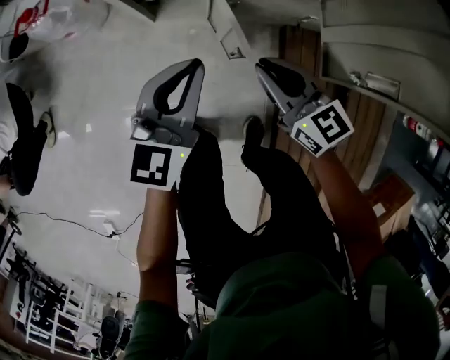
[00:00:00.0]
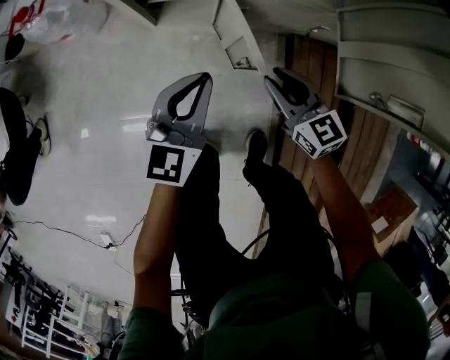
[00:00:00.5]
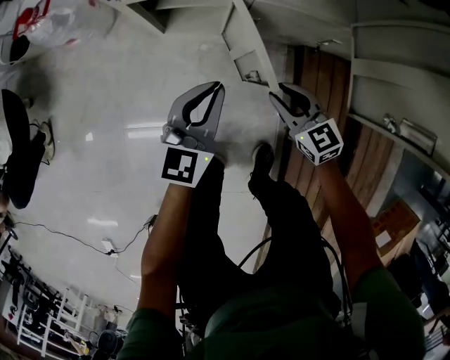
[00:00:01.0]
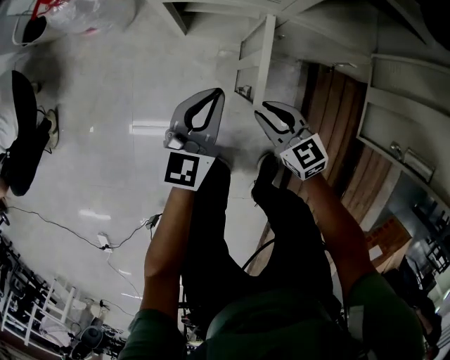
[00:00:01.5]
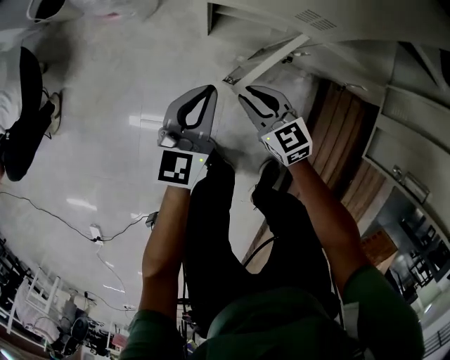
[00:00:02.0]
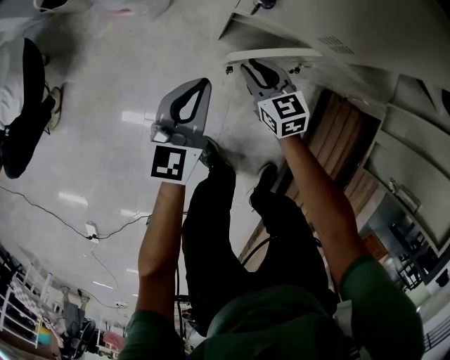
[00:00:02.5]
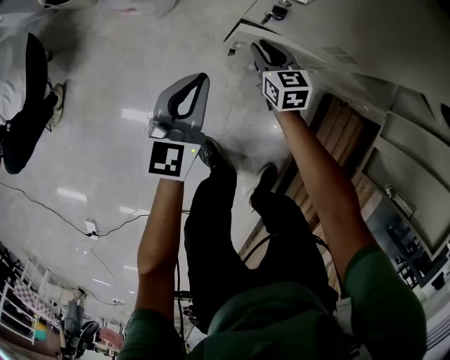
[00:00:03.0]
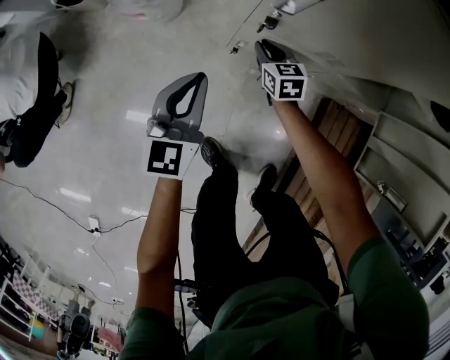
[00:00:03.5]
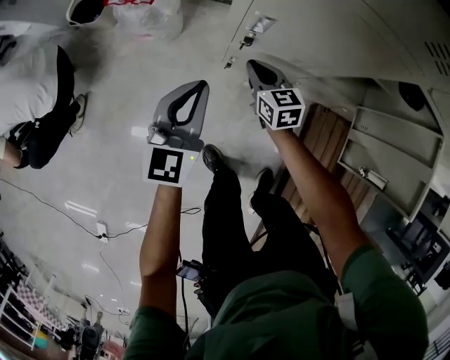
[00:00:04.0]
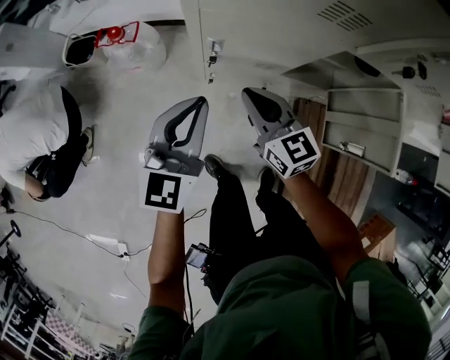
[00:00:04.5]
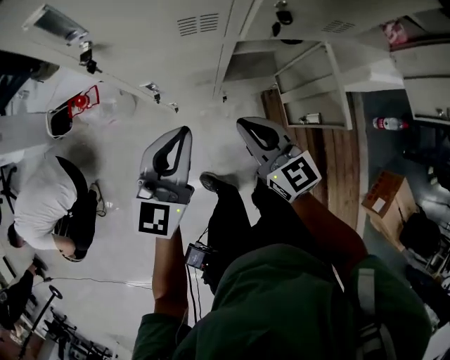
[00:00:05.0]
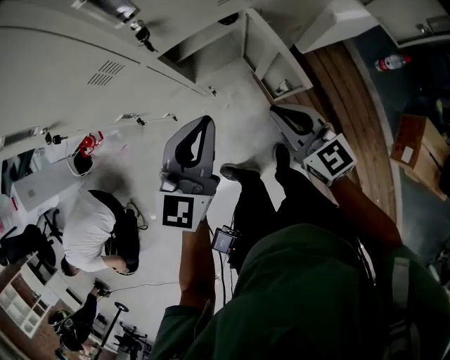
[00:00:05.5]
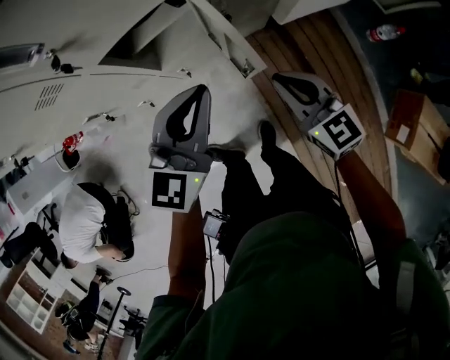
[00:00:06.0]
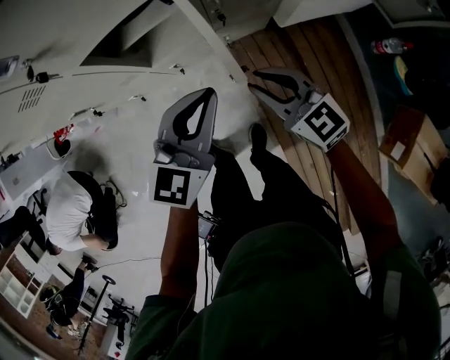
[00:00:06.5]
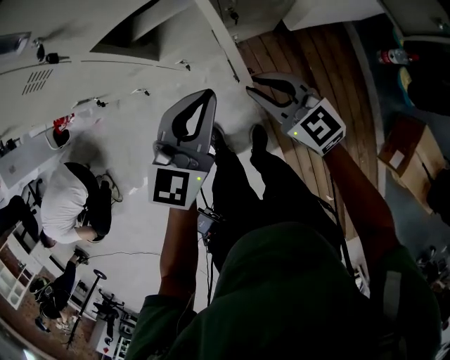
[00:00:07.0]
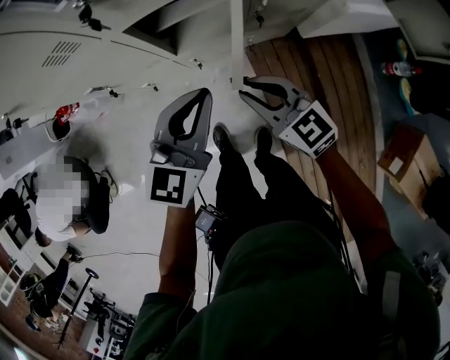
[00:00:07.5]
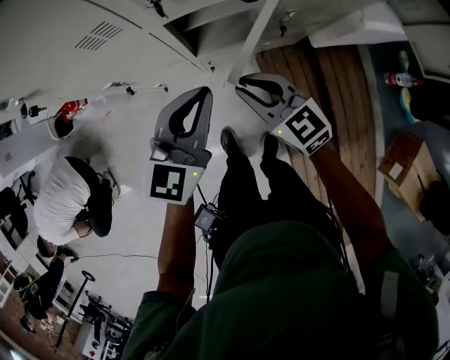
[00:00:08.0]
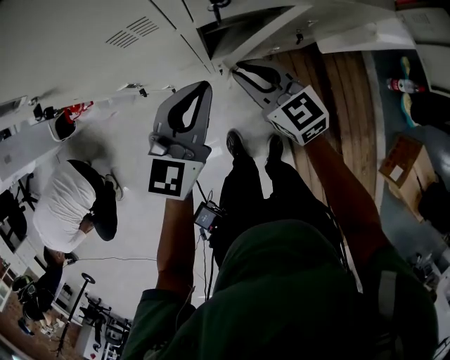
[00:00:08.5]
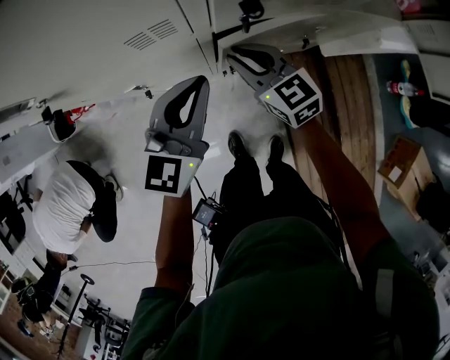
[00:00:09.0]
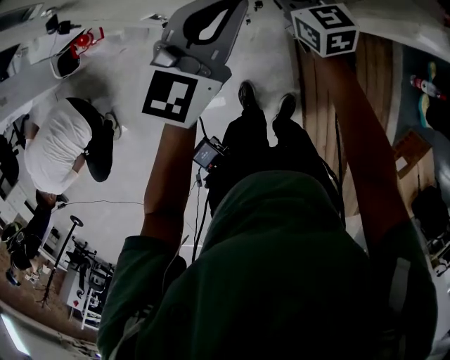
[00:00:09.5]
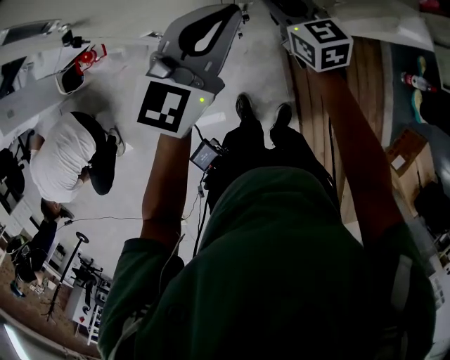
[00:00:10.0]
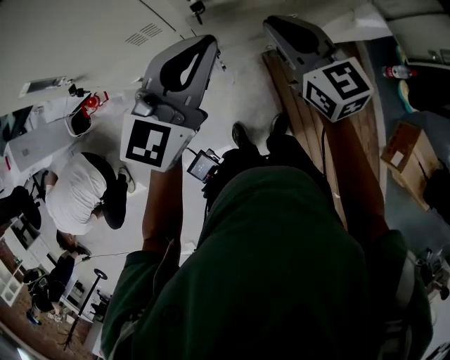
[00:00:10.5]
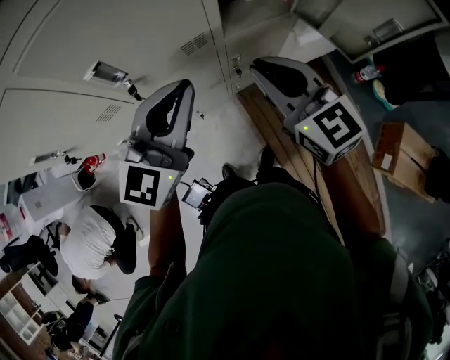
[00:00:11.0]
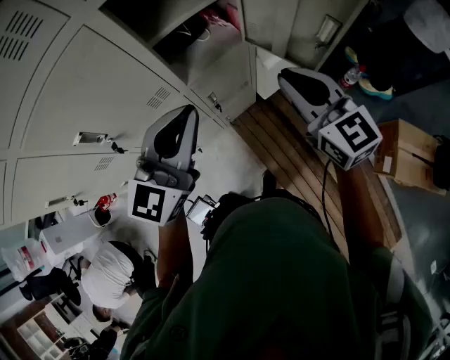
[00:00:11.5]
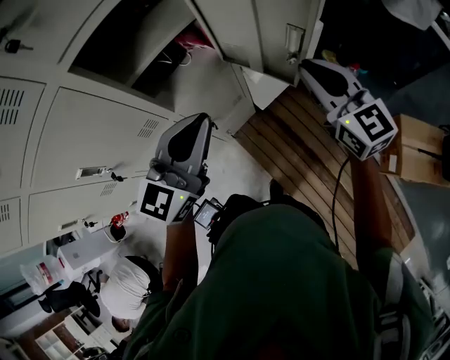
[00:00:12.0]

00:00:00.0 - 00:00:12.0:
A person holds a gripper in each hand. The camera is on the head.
00:00:00.0 - 00:00:02.0: Both grippers travel together to the left, downward and forward, about 25 cm.
00:00:02.0 - 00:00:04.0: The right gripper moves forward and upward, some 20 cm; the left gripper heads upward, covering about 20 cm.
00:00:04.0 - 00:00:06.0: The pair of grippers is taken about 50 cm. The right gripper swivels some 30 degrees; the left gripper swivels roughly 40 degrees.
00:00:06.0 - 00:00:08.0: The two grippers go roughly 15 cm to the left.
00:00:08.0 - 00:00:10.0: The right gripper shifts some 15 cm forward. The left gripper heads upward, forward and to the left, covering some 15 cm.
00:00:10.0 - 00:00:12.0: The right gripper shifts by roughly 60 cm, and swivels roughly 30 degrees, while the left gripper changes place by approximately 40 cm, and swivels approximately 20 degrees.

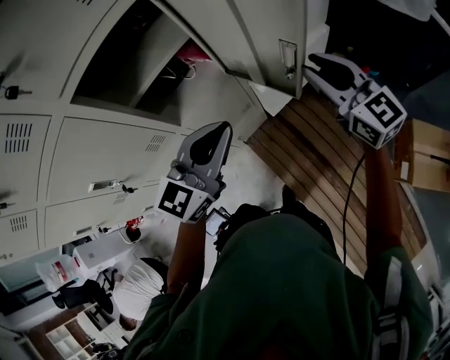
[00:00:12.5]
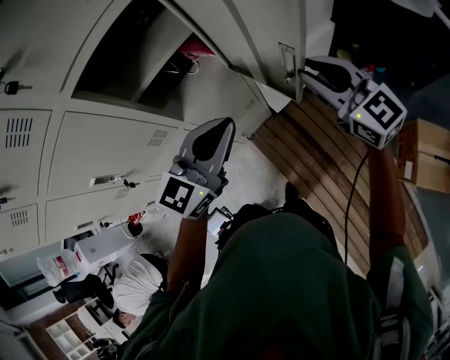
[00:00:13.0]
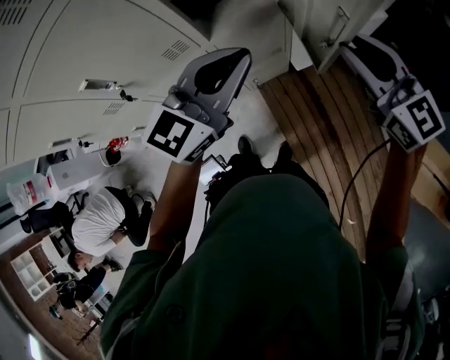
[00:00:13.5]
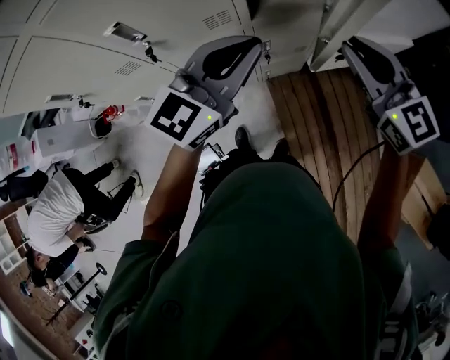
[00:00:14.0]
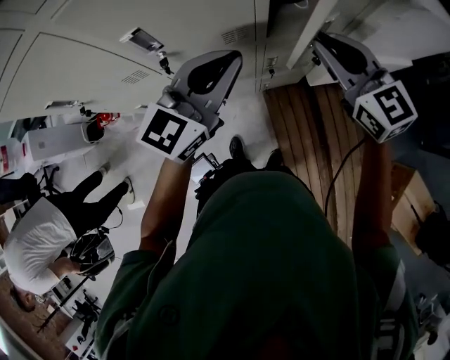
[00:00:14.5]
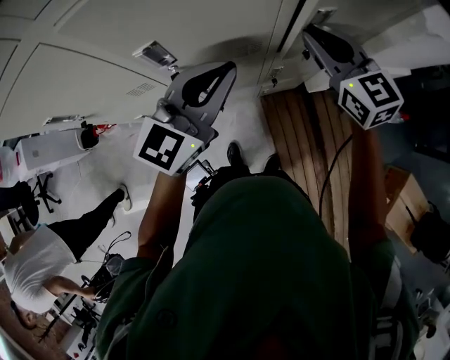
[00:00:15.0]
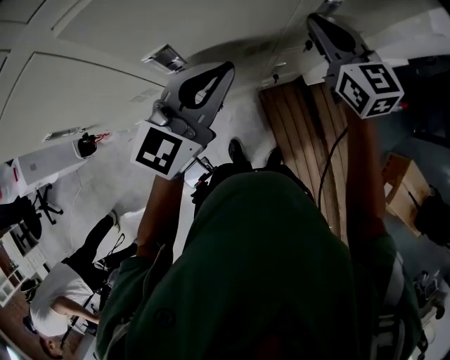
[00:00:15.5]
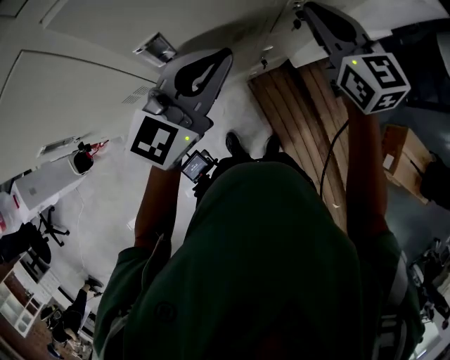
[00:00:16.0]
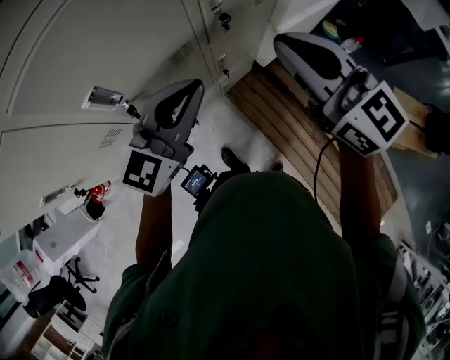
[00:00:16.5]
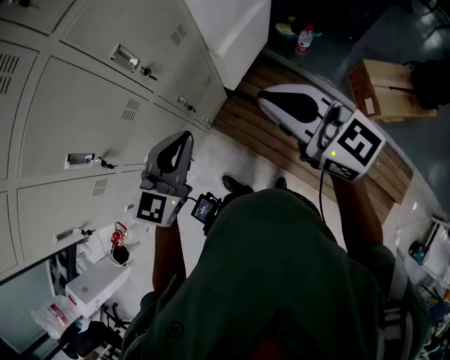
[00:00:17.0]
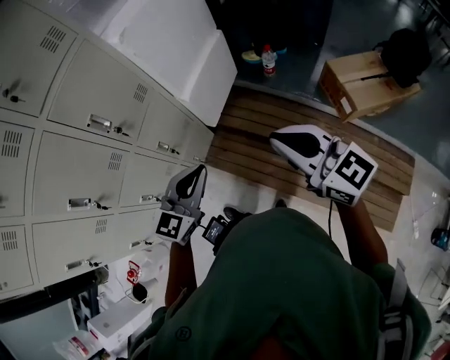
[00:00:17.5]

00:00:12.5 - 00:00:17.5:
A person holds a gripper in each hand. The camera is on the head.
00:00:12.5 - 00:00:15.0: The two grippers go roughly 35 cm to the left. The right gripper turns by about 20 degrees. The left gripper turns by about 20 degrees.
00:00:15.0 - 00:00:17.5: The left gripper ends up roughly 35 cm from where it was, and rotates some 40 degrees; the right gripper ends up about 50 cm from where it was, and changes its angle by about 30 degrees.

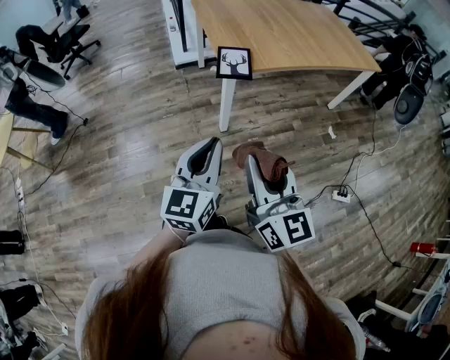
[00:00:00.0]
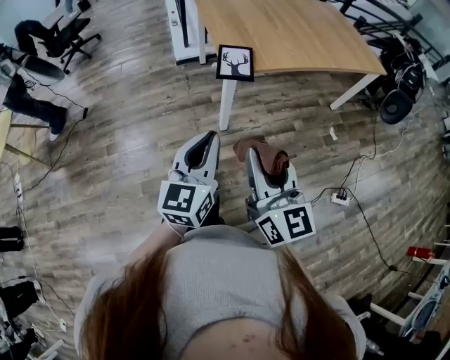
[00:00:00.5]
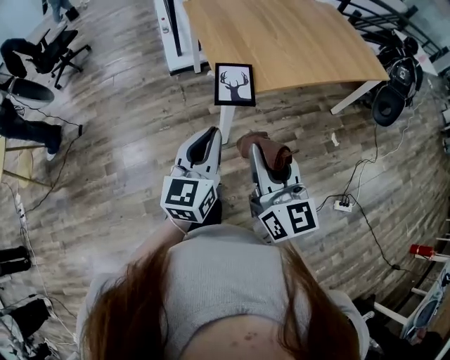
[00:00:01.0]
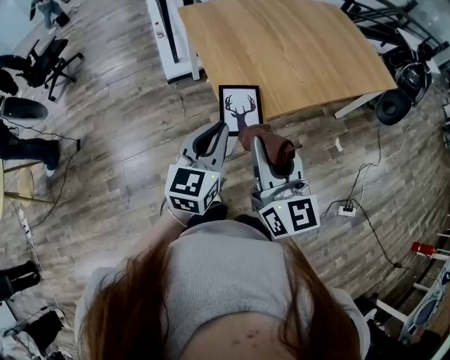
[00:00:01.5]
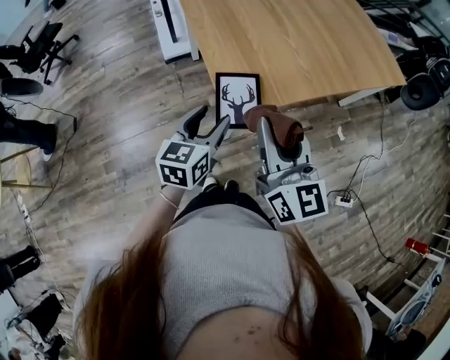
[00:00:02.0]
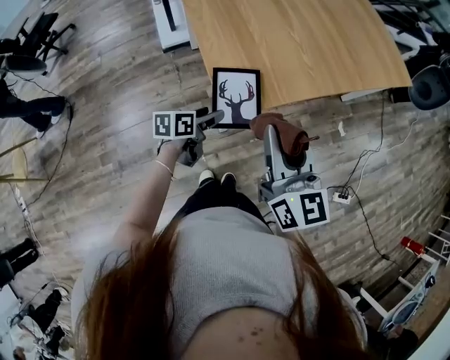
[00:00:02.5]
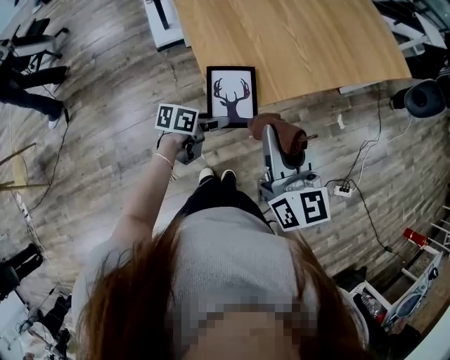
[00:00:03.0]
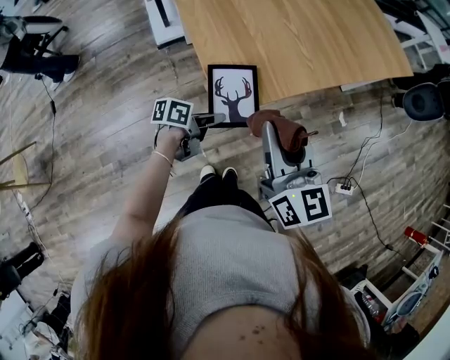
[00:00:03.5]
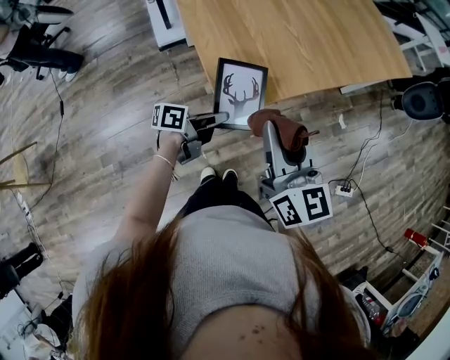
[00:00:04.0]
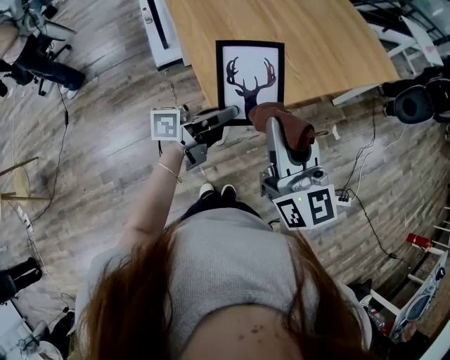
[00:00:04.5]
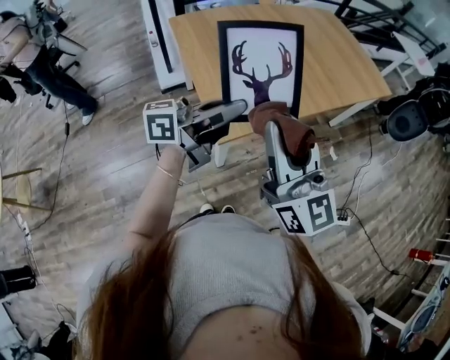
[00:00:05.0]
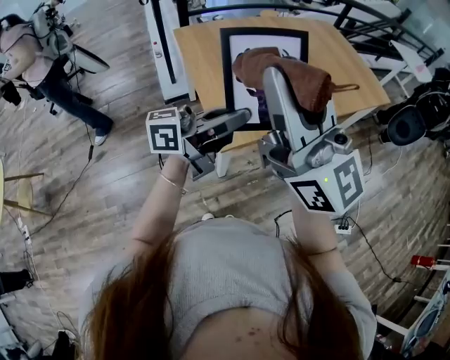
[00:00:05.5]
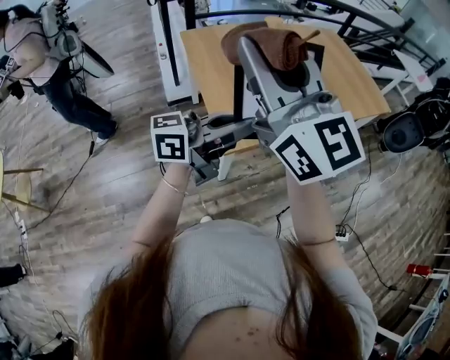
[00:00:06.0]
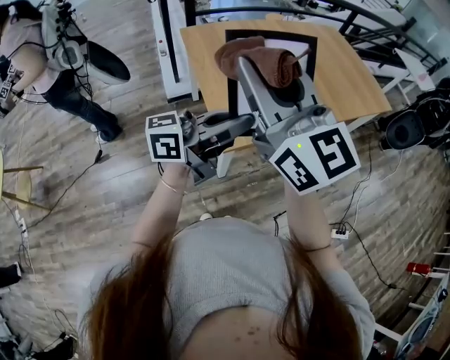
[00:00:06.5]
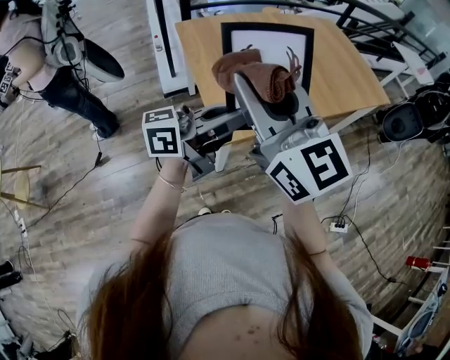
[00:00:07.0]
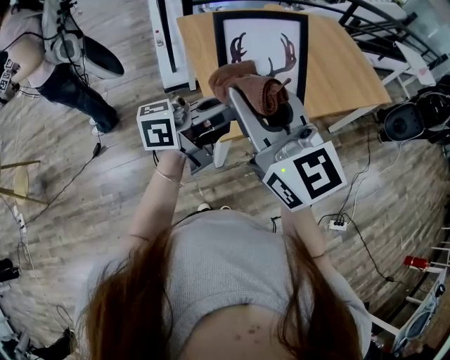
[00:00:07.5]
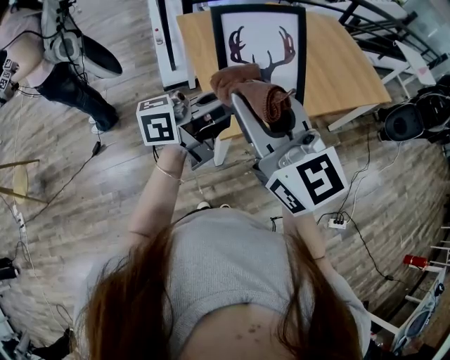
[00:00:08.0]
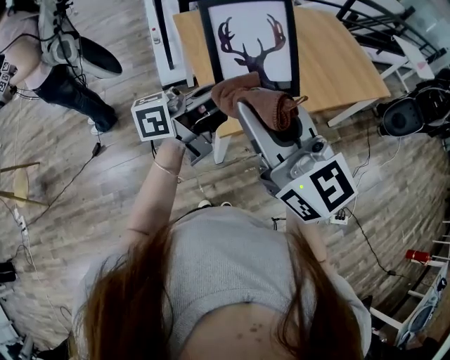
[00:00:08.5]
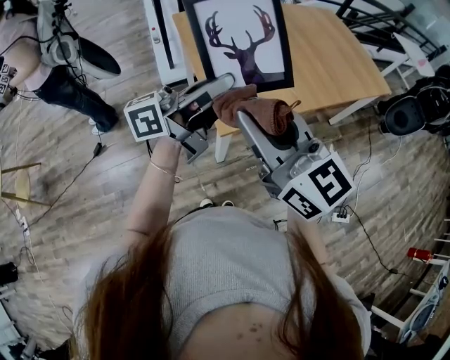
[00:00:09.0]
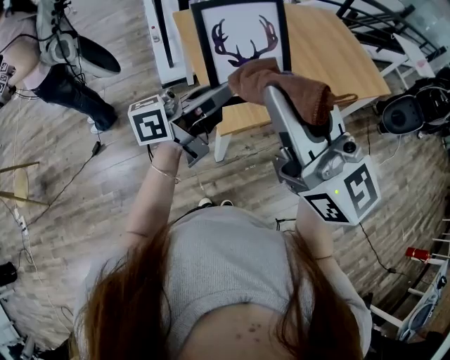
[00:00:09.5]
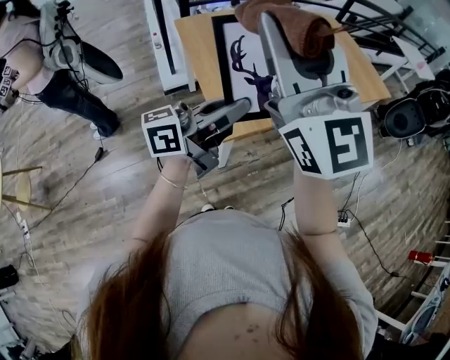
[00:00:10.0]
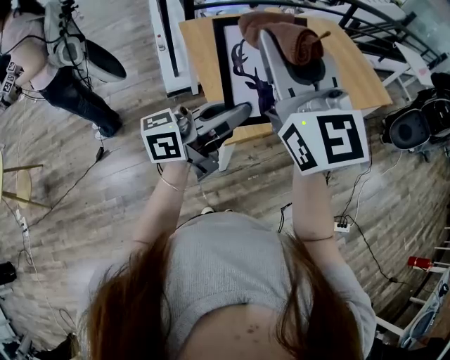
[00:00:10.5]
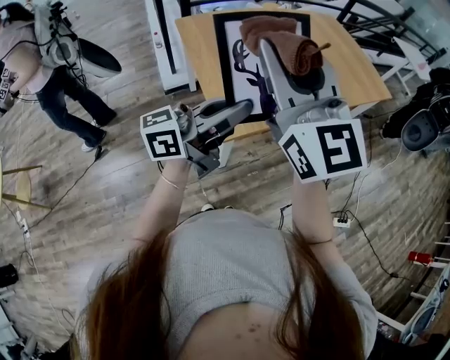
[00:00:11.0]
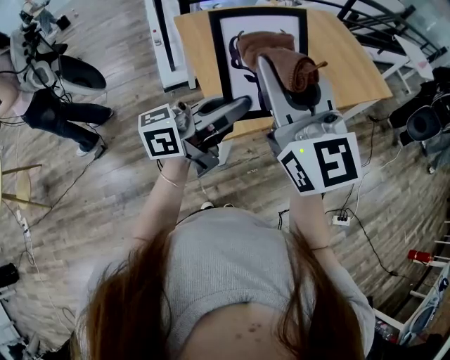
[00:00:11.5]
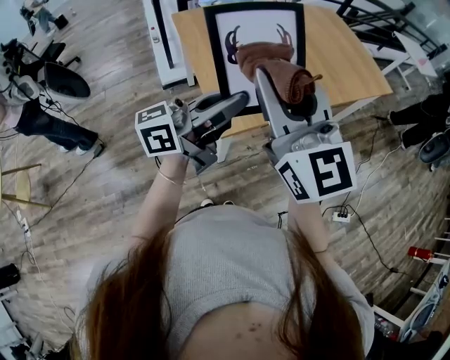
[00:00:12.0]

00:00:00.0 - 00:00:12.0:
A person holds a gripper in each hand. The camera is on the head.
00:00:00.0 - 00:00:02.0: Both grippers are carried forward, about 40 cm. The left gripper rotates approximately 20 degrees, and opens its fingers.
00:00:02.0 - 00:00:04.0: The left gripper travels downward by about 10 cm, turns by about 60 degrees, and closes.
00:00:04.0 - 00:00:06.0: The two grippers go roughly 30 cm upward. The right gripper rotates approximately 40 degrees. The left gripper turns by roughly 50 degrees.
00:00:06.0 - 00:00:08.0: The right gripper travels downward by some 10 cm.
00:00:08.0 - 00:00:10.0: The right gripper shifts some 15 cm upward, and changes its angle by approximately 30 degrees.
00:00:10.0 - 00:00:12.0: The right gripper moves downward, roughly 10 cm.
